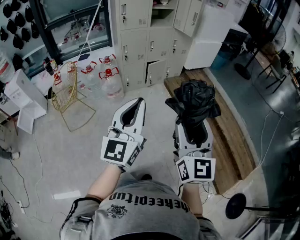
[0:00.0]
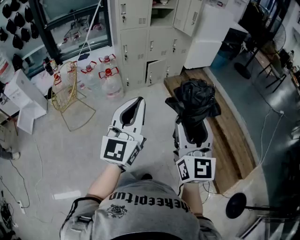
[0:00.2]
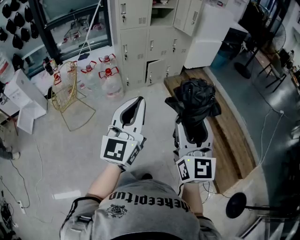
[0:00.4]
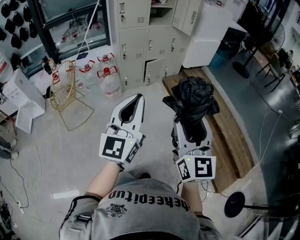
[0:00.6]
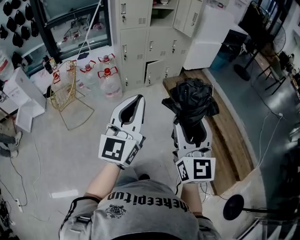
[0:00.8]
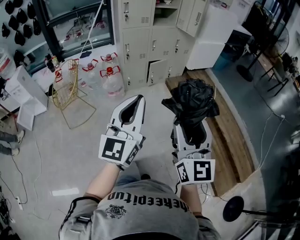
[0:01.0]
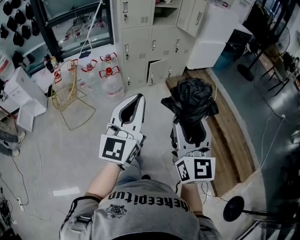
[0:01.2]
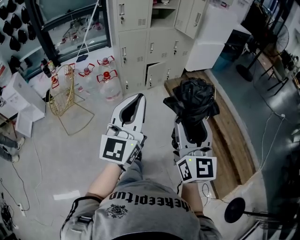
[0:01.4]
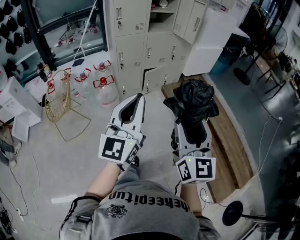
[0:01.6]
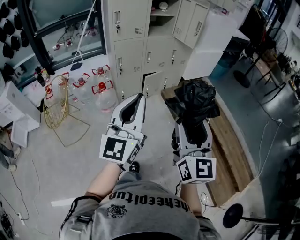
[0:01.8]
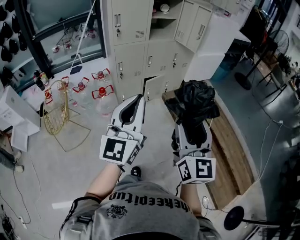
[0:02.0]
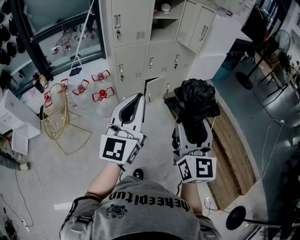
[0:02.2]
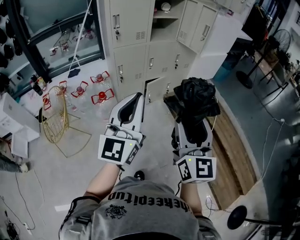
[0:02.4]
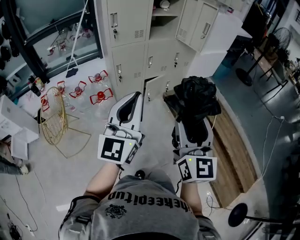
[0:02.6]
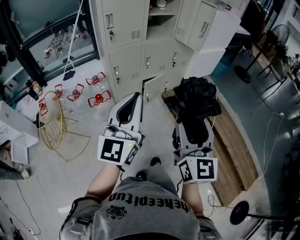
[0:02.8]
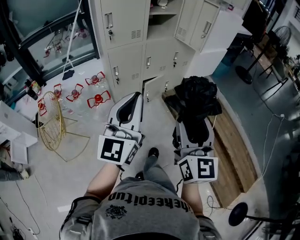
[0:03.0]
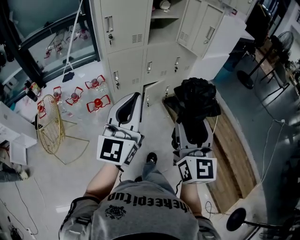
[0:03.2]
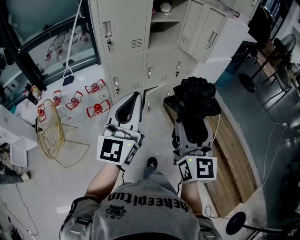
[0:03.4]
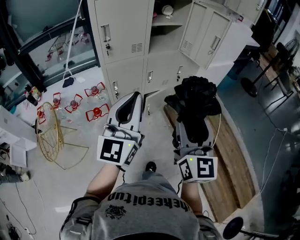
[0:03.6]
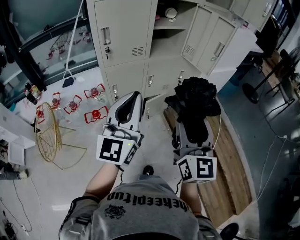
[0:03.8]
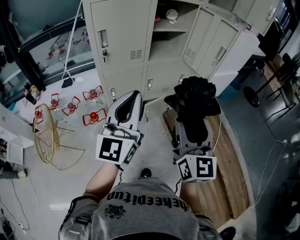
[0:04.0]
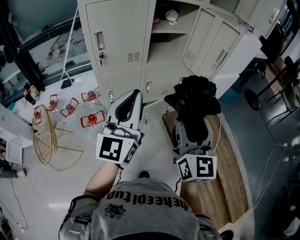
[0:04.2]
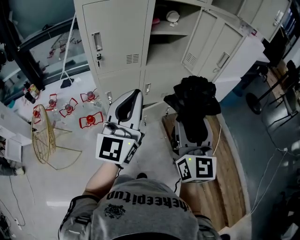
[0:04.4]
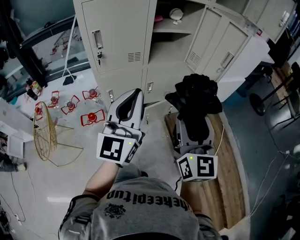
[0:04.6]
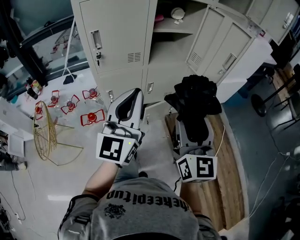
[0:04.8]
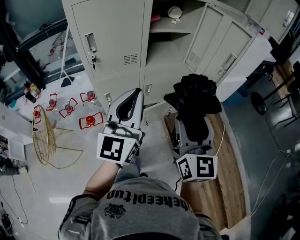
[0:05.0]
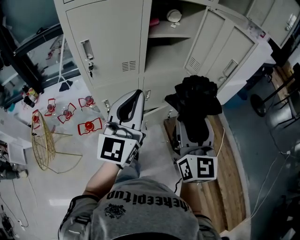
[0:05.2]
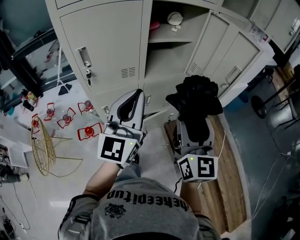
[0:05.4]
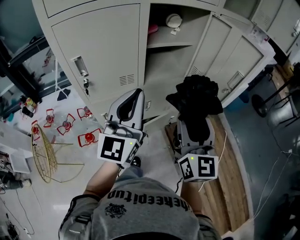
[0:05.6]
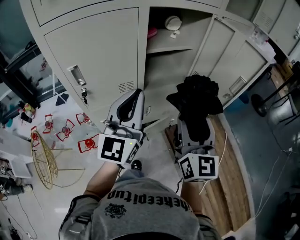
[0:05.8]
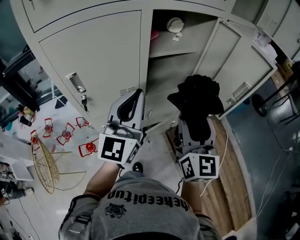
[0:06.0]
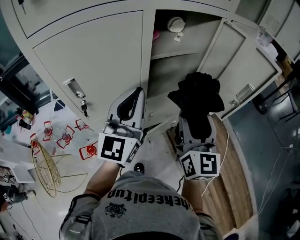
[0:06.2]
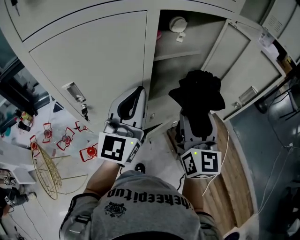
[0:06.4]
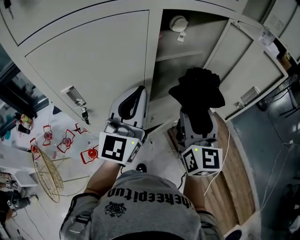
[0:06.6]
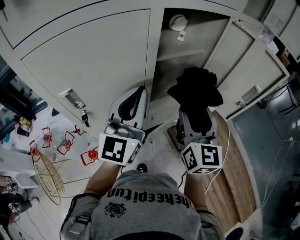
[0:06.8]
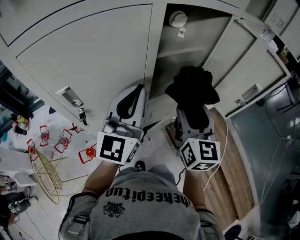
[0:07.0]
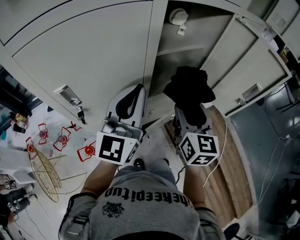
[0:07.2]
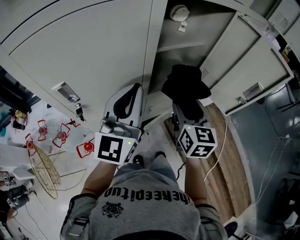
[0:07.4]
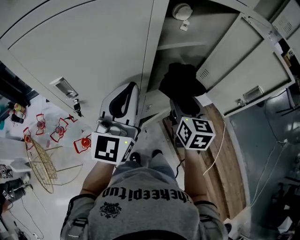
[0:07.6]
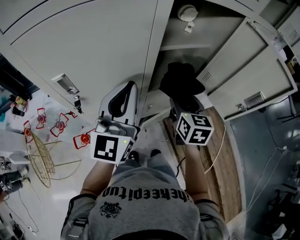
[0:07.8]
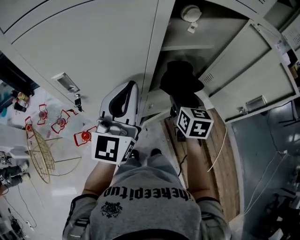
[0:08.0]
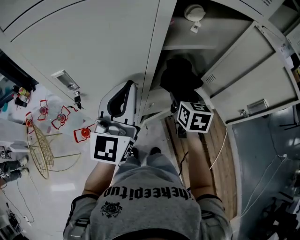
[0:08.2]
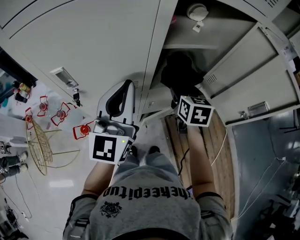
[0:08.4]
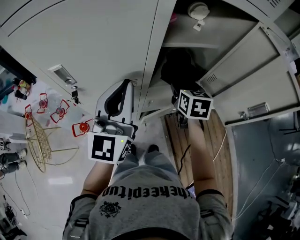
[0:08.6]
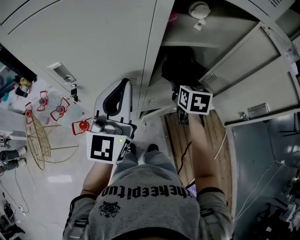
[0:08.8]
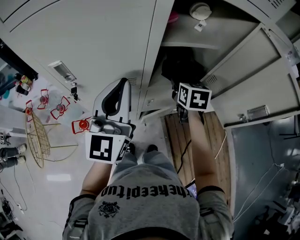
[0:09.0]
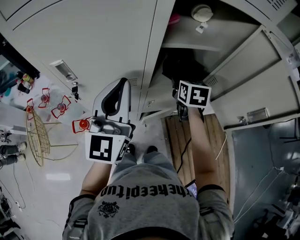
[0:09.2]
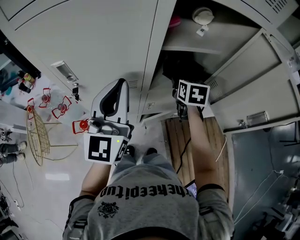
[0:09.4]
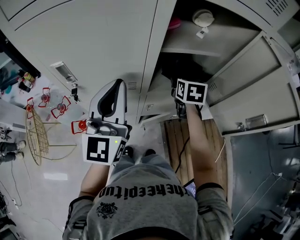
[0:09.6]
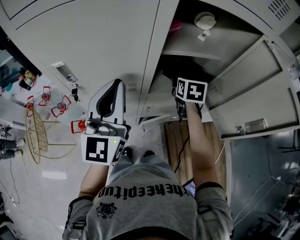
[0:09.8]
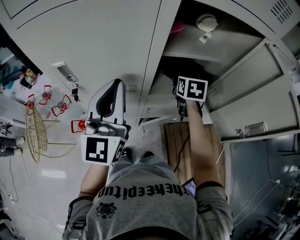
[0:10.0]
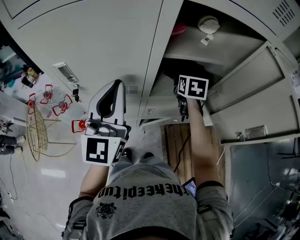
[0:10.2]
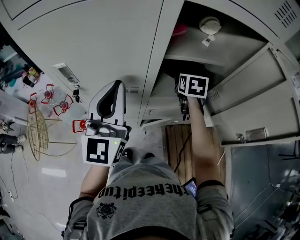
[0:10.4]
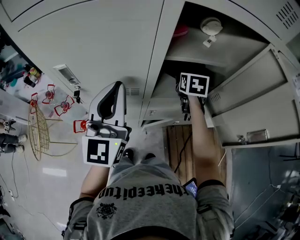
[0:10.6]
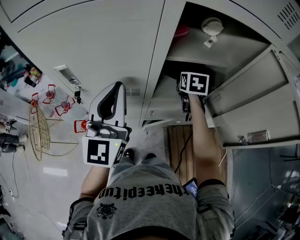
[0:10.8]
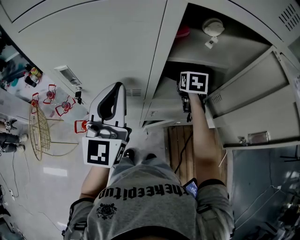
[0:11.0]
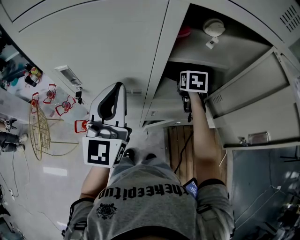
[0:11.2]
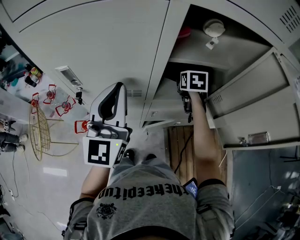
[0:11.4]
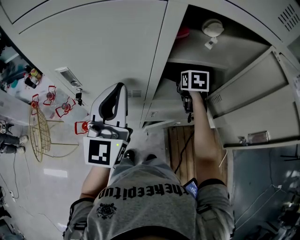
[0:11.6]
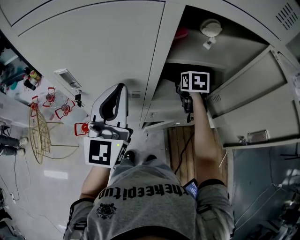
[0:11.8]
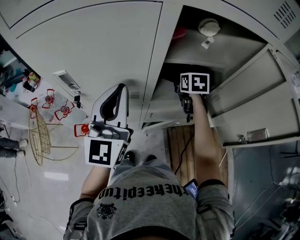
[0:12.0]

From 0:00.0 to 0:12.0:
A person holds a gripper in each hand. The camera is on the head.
From 0:00.0 to 0:01.6: The two grippers go some 15 cm forward.
From 0:01.6 to 0:03.0: The two grippers go some 25 cm forward.
From 0:03.0 to 0:04.4: The grippers both shift forward by roughly 30 cm.
From 0:04.4 to 0:06.0: The grippers both shift forward by approximately 25 cm.
From 0:06.0 to 0:07.6: The left gripper shifts some 5 cm forward; the right gripper travels forward and downward by approximately 15 cm, and swivels approximately 30 degrees.
From 0:07.6 to 0:09.0: The right gripper moves forward, approximately 10 cm, and turns by about 20 degrees.
From 0:09.0 to 0:10.4: The right gripper is displaced forward by some 10 cm.
From 0:10.4 to 0:12.0: The grippers make only small movements.

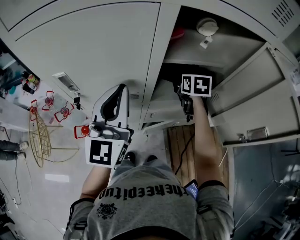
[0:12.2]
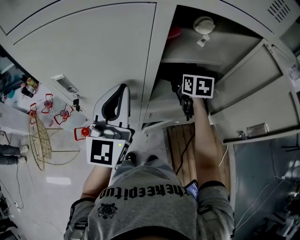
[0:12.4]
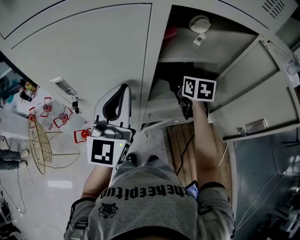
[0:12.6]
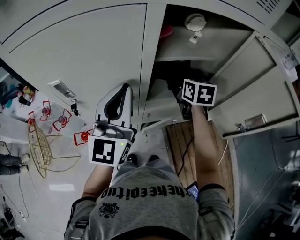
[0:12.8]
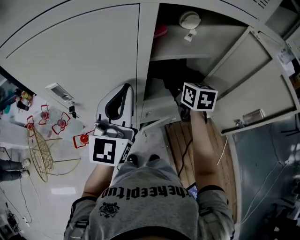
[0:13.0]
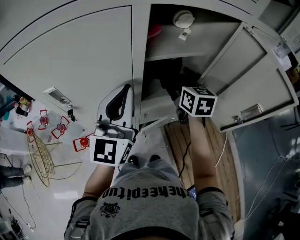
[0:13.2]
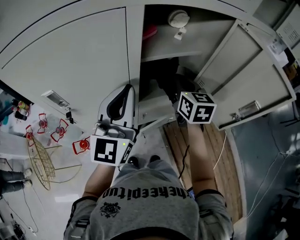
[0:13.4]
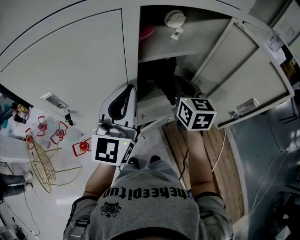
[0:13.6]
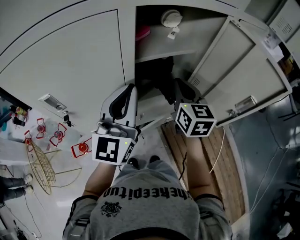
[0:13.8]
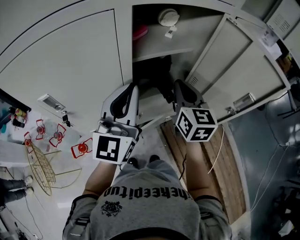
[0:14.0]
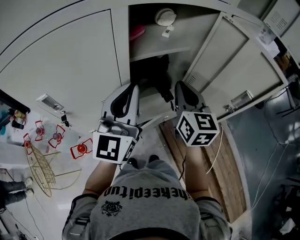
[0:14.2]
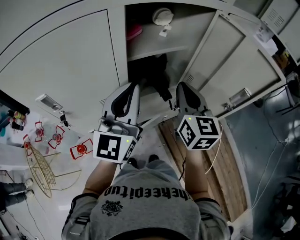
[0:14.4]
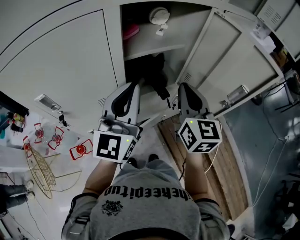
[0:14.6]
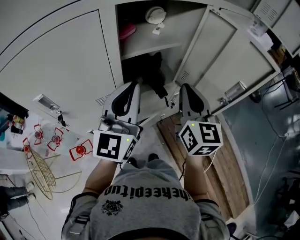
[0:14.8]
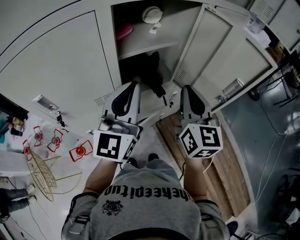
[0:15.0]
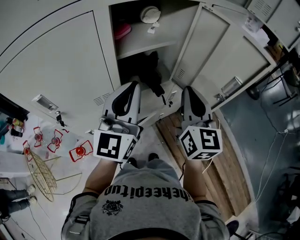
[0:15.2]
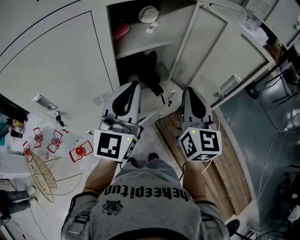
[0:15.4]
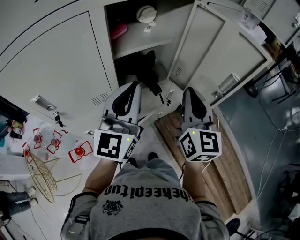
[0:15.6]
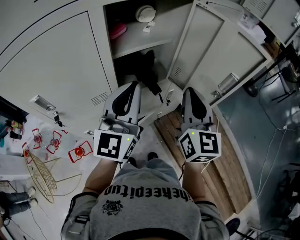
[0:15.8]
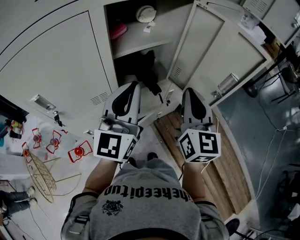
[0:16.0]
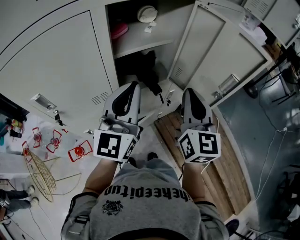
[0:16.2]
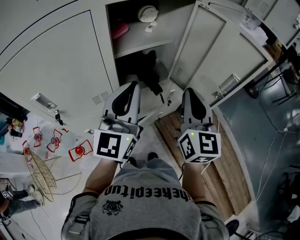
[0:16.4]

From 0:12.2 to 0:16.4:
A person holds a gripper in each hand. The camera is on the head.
From 0:12.2 to 0:13.6: The left gripper moves to the right, some 5 cm. Meanwhile the right gripper heads backward and upward, covering approximately 15 cm, changes its angle by about 30 degrees, and closes its fingers.
From 0:13.6 to 0:15.0: The left gripper moves to the right, approximately 5 cm; the right gripper is displaced backward, to the right and upward by some 15 cm.
From 0:15.0 to 0:16.4: There are only small adjustments of the grippers.

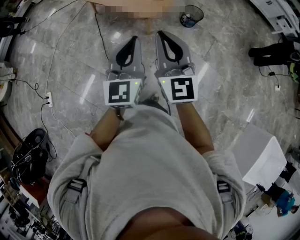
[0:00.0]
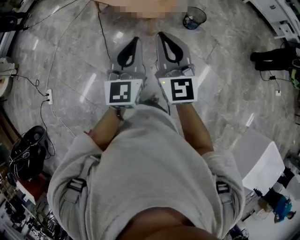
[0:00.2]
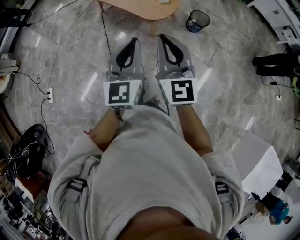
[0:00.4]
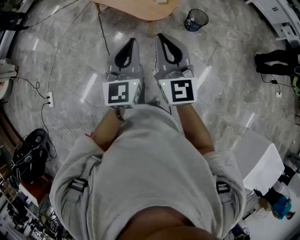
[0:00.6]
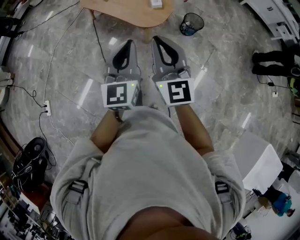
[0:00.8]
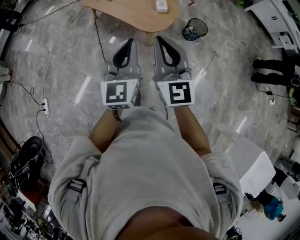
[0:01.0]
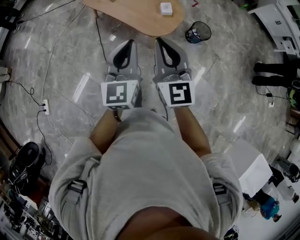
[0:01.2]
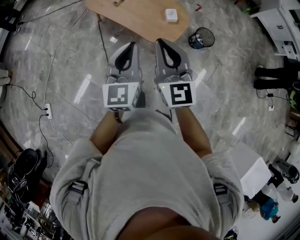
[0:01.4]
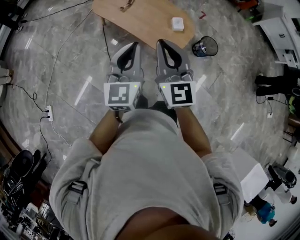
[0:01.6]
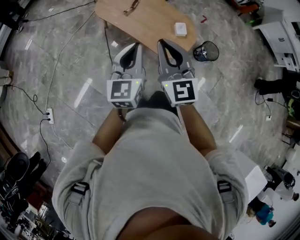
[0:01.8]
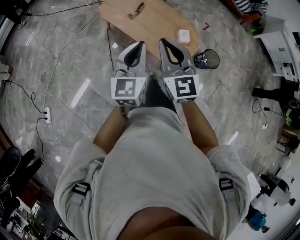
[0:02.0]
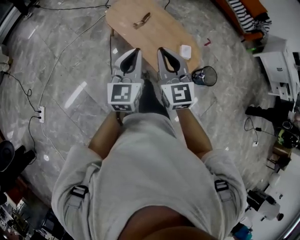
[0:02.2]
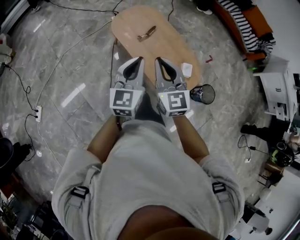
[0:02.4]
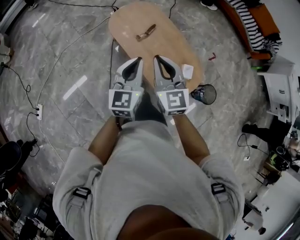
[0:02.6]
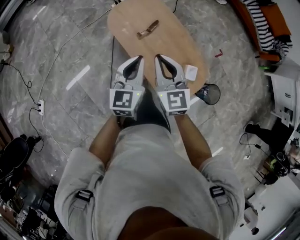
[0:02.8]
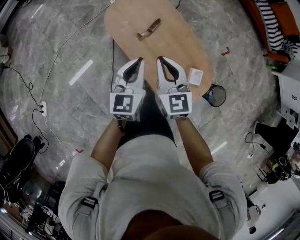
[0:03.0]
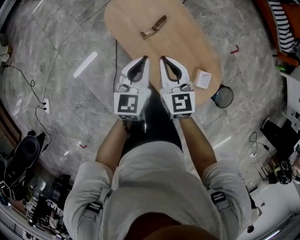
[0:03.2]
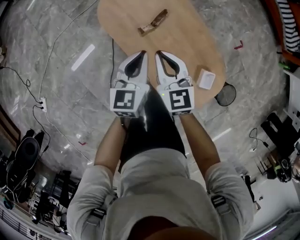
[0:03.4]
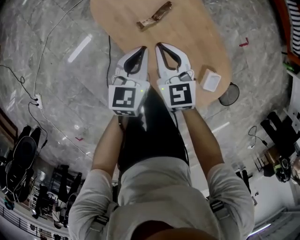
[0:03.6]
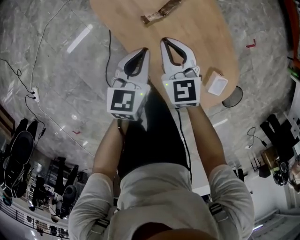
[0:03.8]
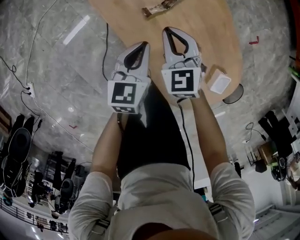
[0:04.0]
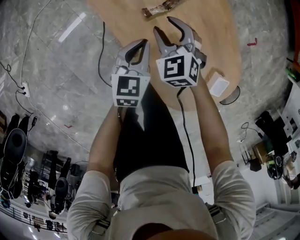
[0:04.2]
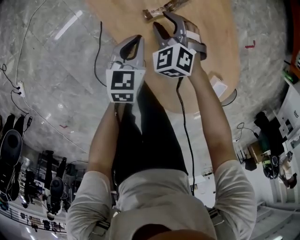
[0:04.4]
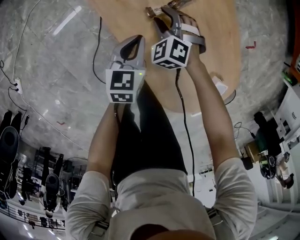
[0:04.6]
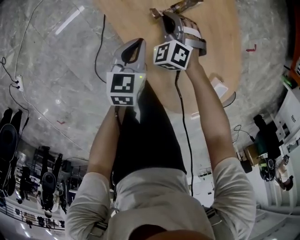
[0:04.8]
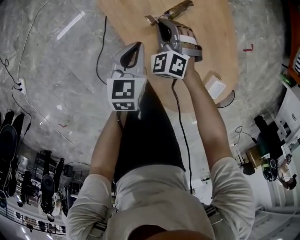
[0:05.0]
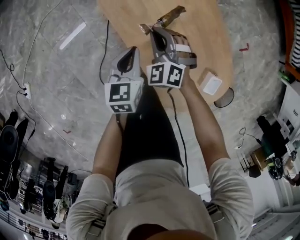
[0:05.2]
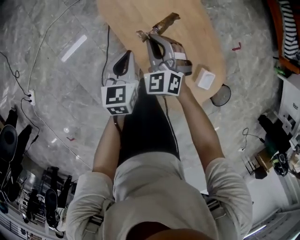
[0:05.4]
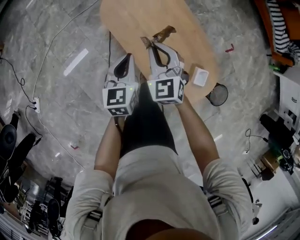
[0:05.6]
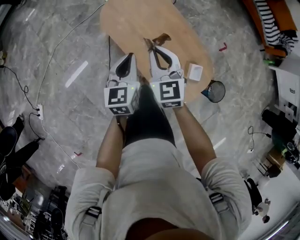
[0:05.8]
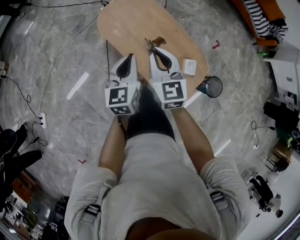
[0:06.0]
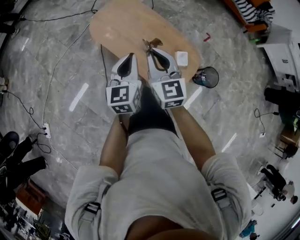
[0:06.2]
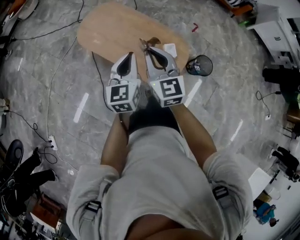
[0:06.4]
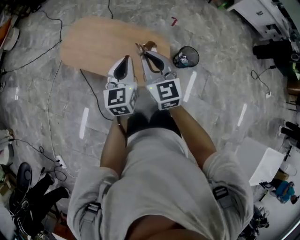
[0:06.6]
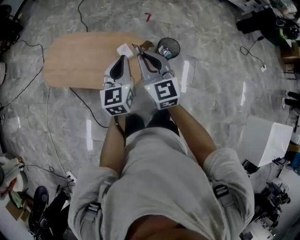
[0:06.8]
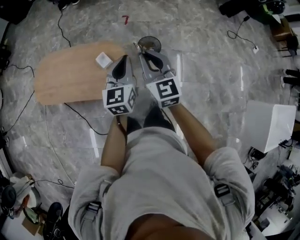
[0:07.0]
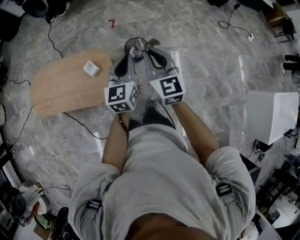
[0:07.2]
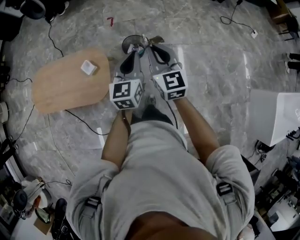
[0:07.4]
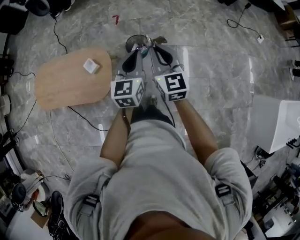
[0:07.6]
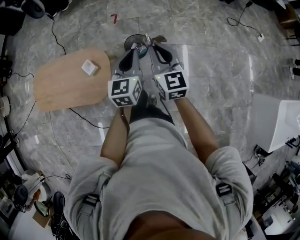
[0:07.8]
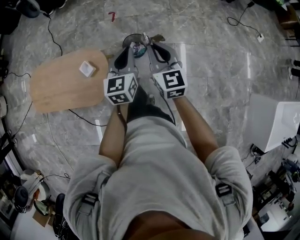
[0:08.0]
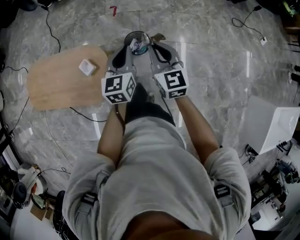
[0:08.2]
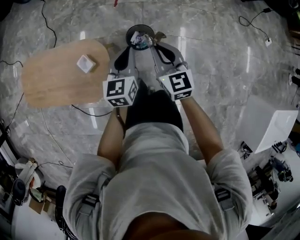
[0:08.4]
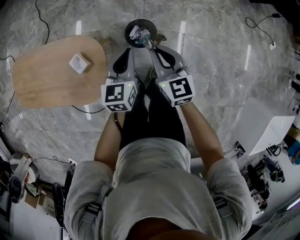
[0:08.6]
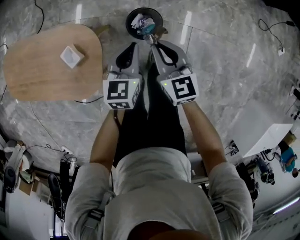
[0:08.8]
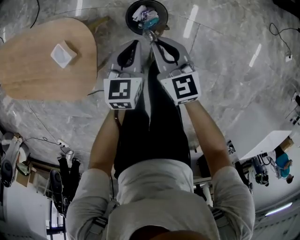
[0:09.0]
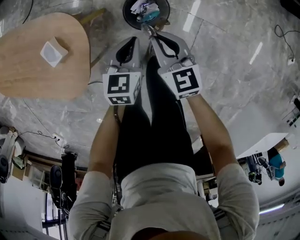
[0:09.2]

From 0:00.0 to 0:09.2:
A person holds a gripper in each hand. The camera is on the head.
From 0:00.0 to 0:01.6: The right gripper heads forward, covering some 35 cm. Meanwhile the left gripper travels forward and to the left by roughly 40 cm.
From 0:01.6 to 0:03.0: Both grippers travel together forward and downward, roughly 40 cm. The right gripper turns by about 20 degrees.
From 0:03.0 to 0:04.6: Both grippers travel together downward, approximately 40 cm. The left gripper rotates approximately 30 degrees; the right gripper tilts its fingers roughly 40 degrees downward, and opens its fingers.
From 0:04.6 to 0:06.2: Both grippers move upward and backward, some 50 cm. The left gripper changes its angle by approximately 30 degrees, while the right gripper angles its fingers upward, by roughly 40 degrees, and closes its fingers.
From 0:06.2 to 0:07.6: Both grippers are carried some 70 cm. The left gripper turns by some 50 degrees. Meanwhile the right gripper turns by about 40 degrees.
From 0:07.6 to 0:09.2: Both grippers travel together downward and forward, about 50 cm. The left gripper rotates roughly 30 degrees. The right gripper changes its angle by about 30 degrees.